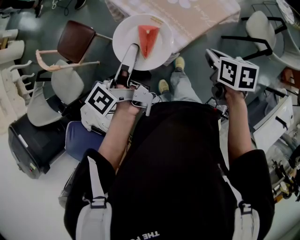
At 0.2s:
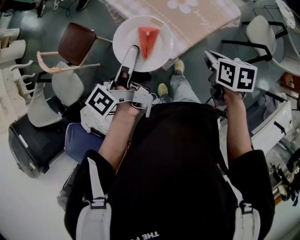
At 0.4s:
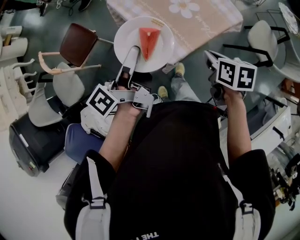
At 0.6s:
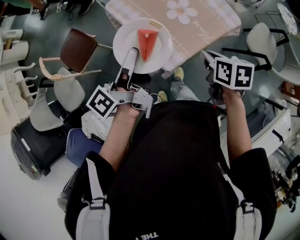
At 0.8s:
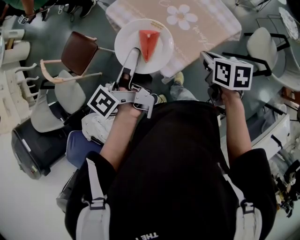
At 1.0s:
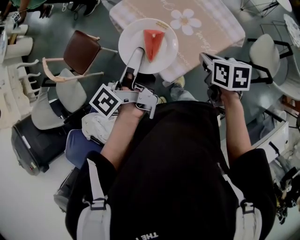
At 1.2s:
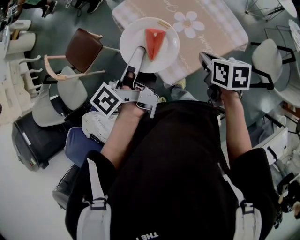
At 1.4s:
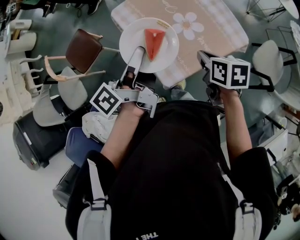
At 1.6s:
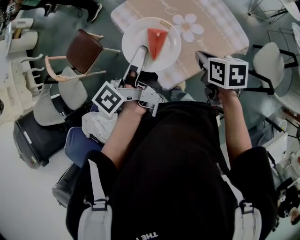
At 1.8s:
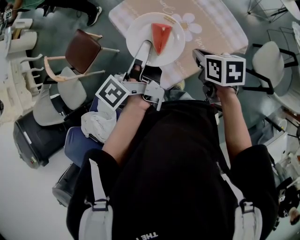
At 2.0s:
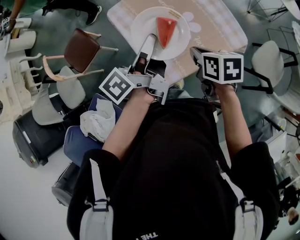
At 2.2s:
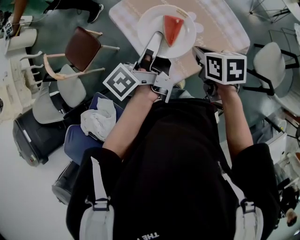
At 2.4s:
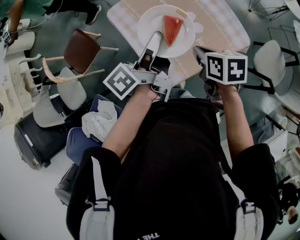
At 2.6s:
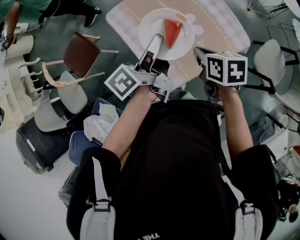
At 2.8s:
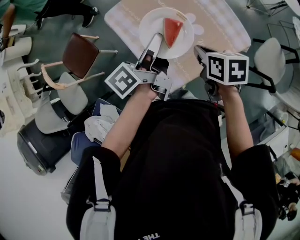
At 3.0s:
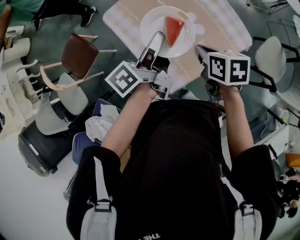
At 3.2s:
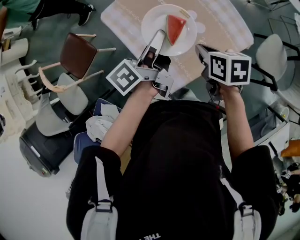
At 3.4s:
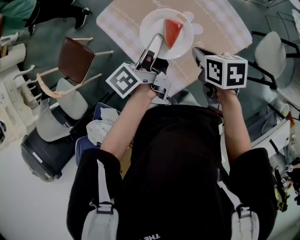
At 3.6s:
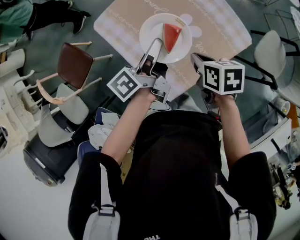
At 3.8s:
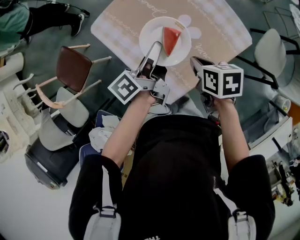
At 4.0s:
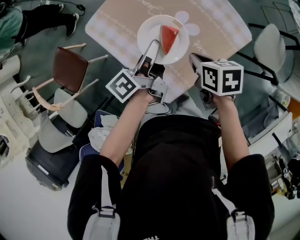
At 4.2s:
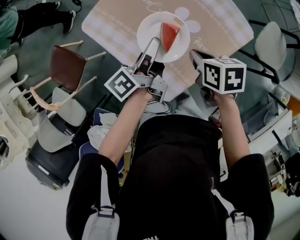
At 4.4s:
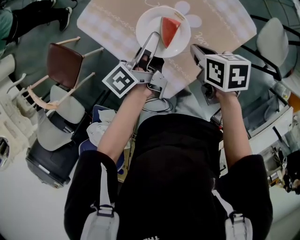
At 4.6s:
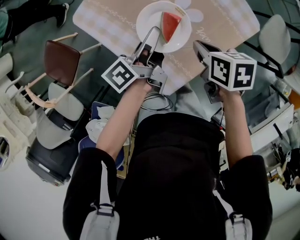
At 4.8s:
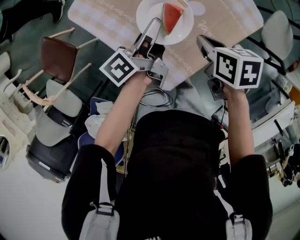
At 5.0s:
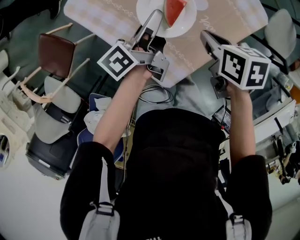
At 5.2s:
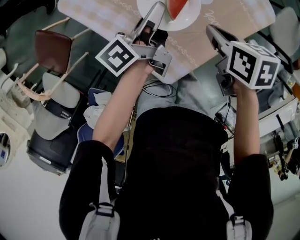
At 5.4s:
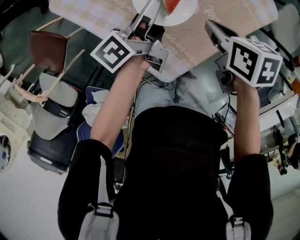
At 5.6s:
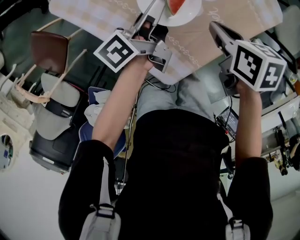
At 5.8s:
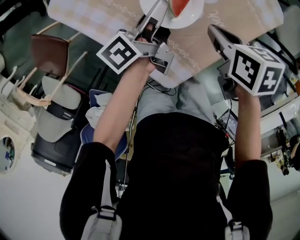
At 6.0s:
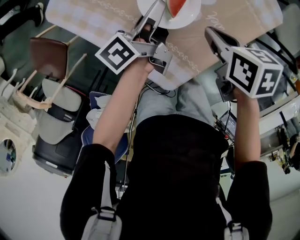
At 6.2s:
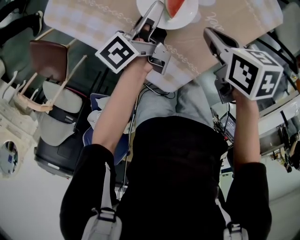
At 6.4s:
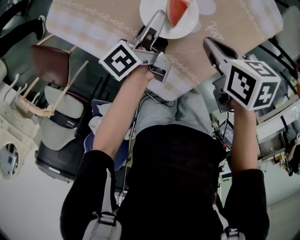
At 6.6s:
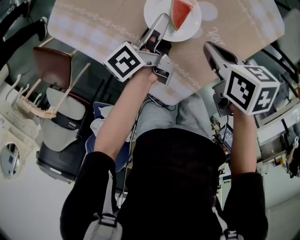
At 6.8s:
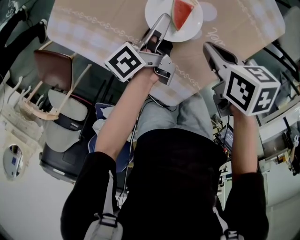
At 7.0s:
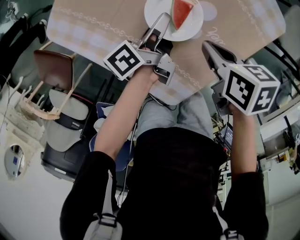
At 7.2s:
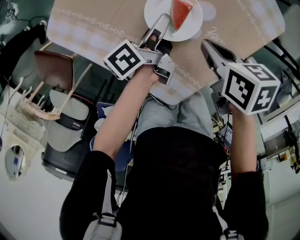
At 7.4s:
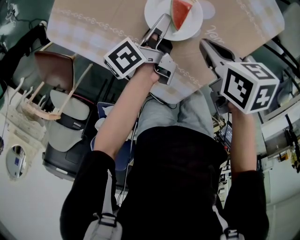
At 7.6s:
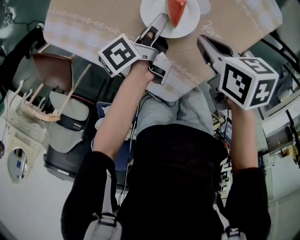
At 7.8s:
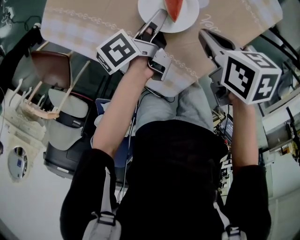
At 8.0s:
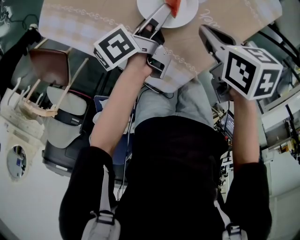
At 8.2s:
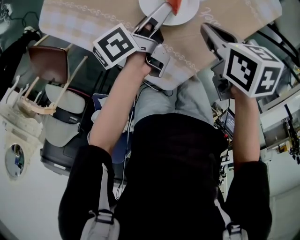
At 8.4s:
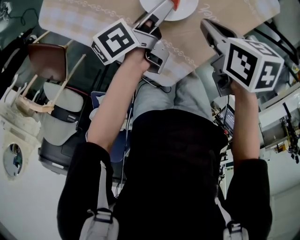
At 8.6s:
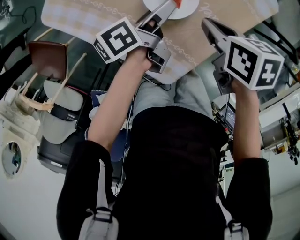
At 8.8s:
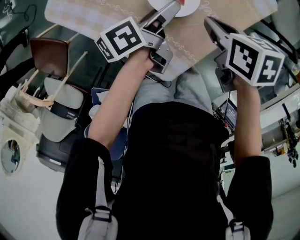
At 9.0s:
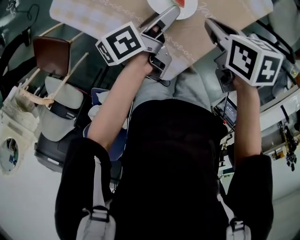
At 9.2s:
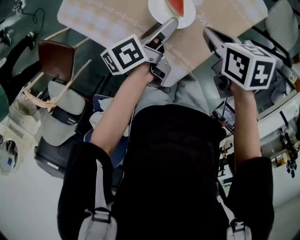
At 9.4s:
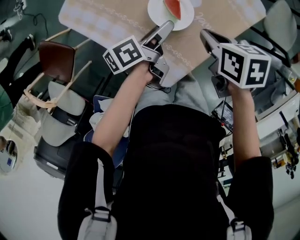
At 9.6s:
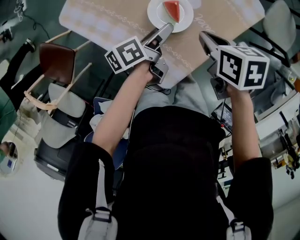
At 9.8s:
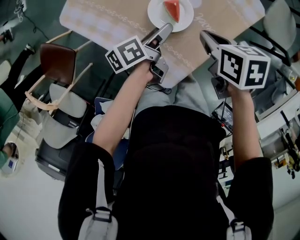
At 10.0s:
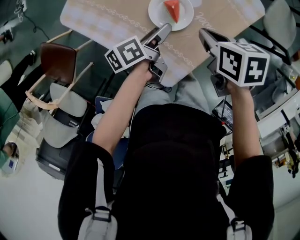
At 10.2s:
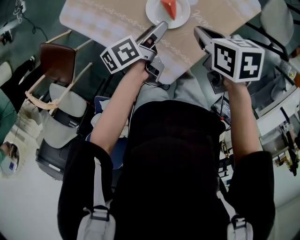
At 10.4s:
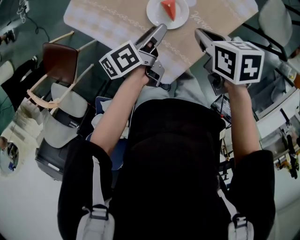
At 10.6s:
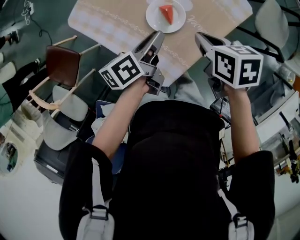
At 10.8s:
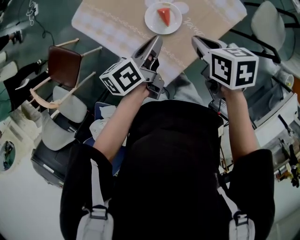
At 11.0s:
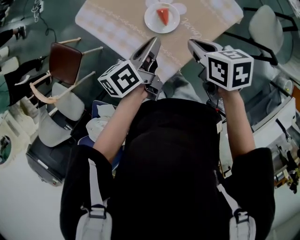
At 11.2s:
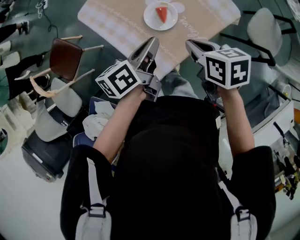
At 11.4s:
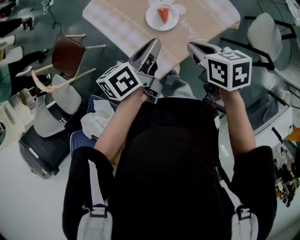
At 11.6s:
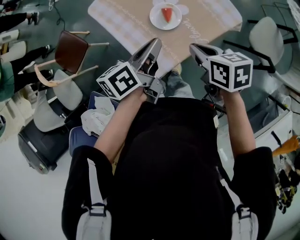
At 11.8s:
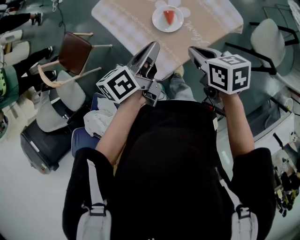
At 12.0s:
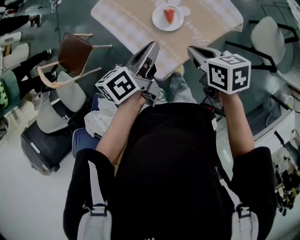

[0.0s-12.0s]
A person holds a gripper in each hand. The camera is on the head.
0.0s to 1.6s: The right gripper shifts by approximately 20 cm.
1.6s to 3.0s: The right gripper shifts by roughly 5 cm.
3.0s to 4.4s: The right gripper is displaced downward by about 10 cm.
4.4s to 6.0s: The right gripper moves downward, approximately 10 cm.
7.6s to 9.0s: The right gripper shifts by some 5 cm.
10.4s to 12.0s: The right gripper moves roughly 15 cm.

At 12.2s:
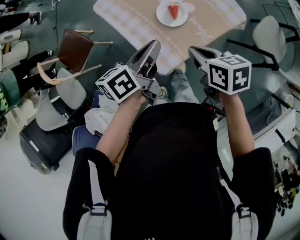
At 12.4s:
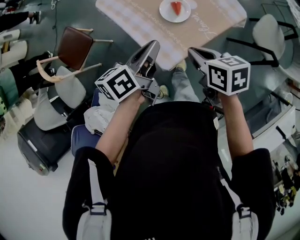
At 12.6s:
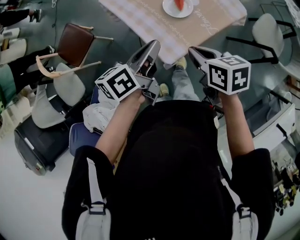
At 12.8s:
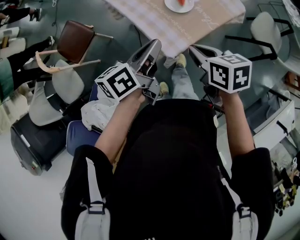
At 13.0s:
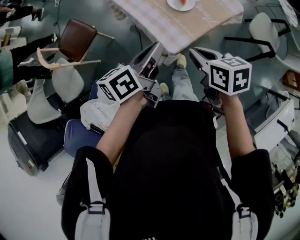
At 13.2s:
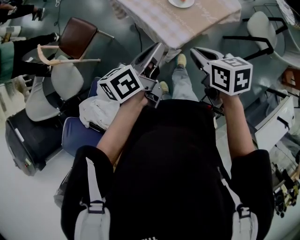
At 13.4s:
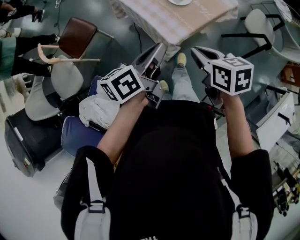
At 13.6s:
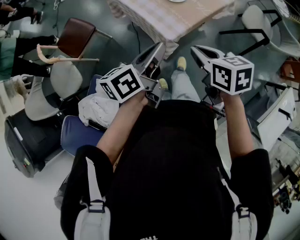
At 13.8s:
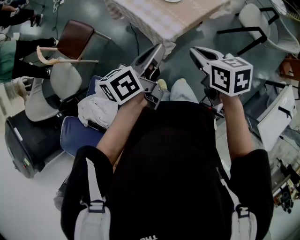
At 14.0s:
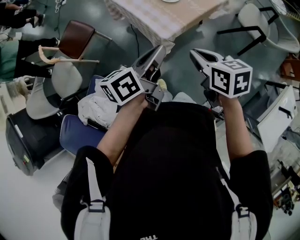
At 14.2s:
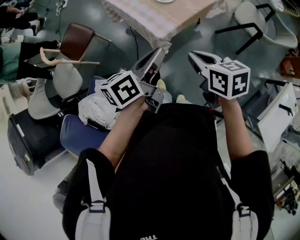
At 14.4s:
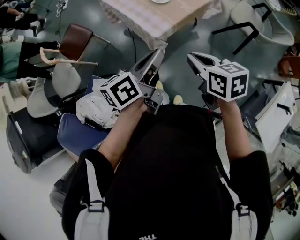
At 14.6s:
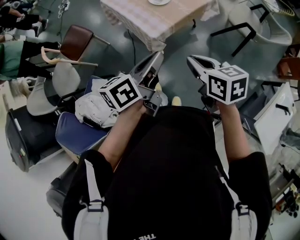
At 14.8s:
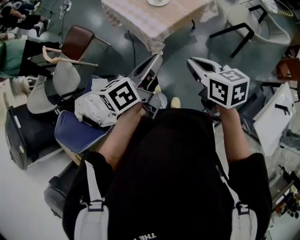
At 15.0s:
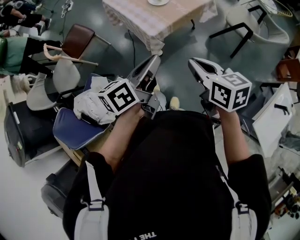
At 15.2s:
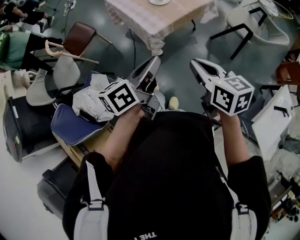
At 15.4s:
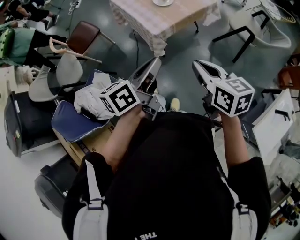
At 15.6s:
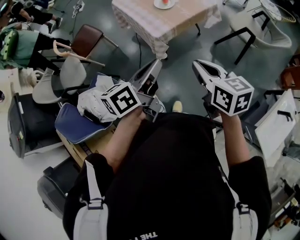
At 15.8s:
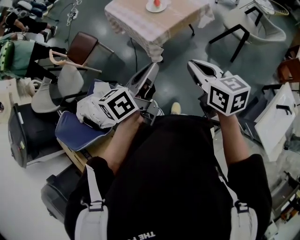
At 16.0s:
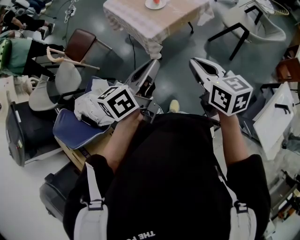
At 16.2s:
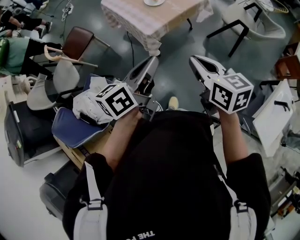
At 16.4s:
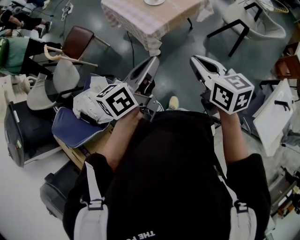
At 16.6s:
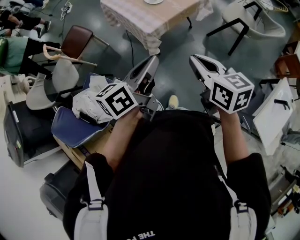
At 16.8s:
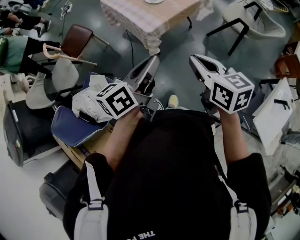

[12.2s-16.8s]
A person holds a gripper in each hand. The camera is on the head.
12.2s to 13.8s: The right gripper changes place by approximately 25 cm.
13.8s to 15.2s: The right gripper changes place by about 20 cm.

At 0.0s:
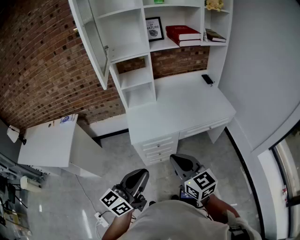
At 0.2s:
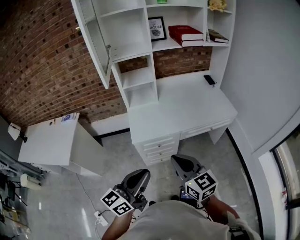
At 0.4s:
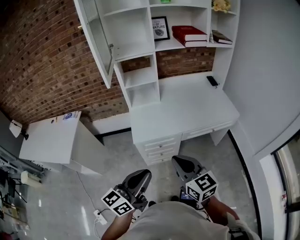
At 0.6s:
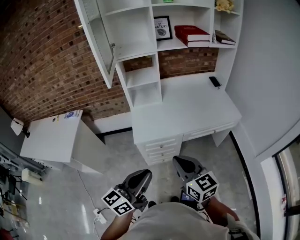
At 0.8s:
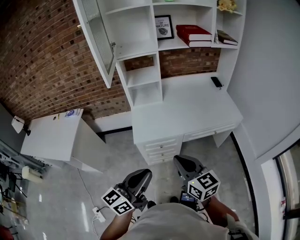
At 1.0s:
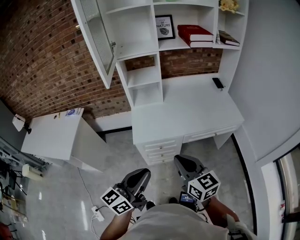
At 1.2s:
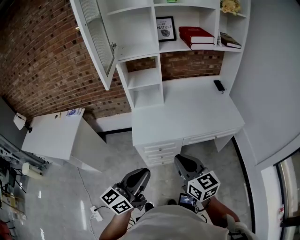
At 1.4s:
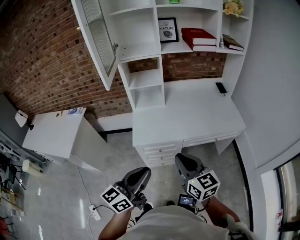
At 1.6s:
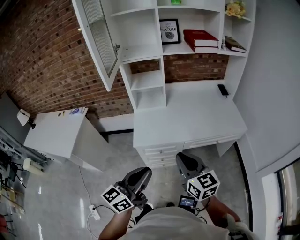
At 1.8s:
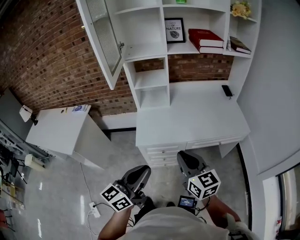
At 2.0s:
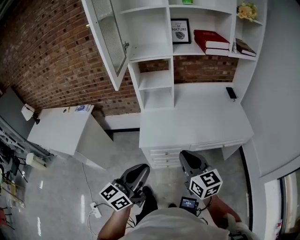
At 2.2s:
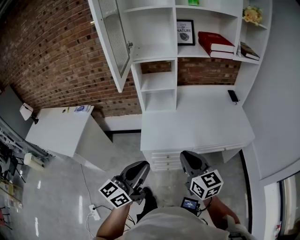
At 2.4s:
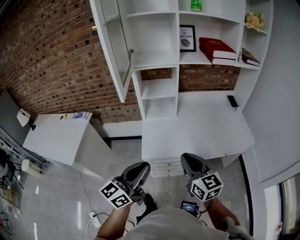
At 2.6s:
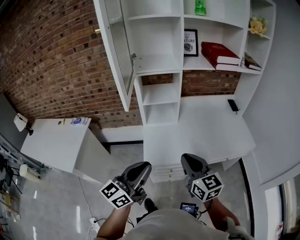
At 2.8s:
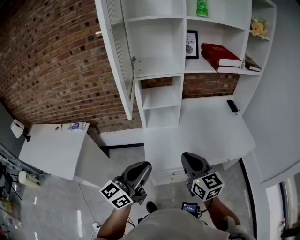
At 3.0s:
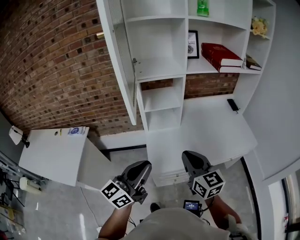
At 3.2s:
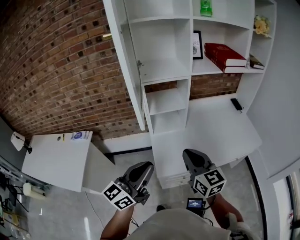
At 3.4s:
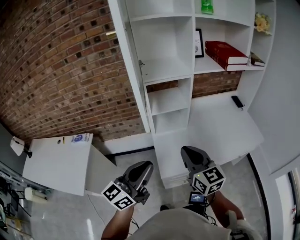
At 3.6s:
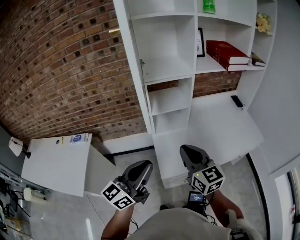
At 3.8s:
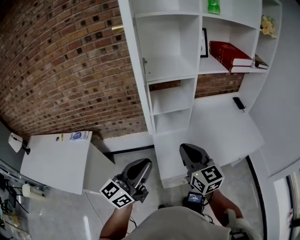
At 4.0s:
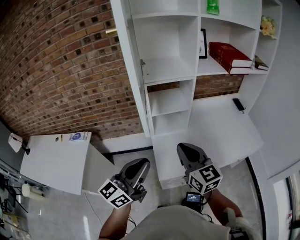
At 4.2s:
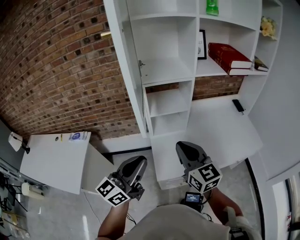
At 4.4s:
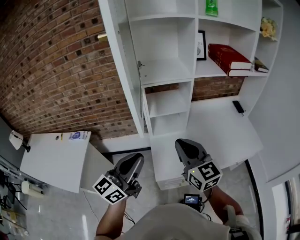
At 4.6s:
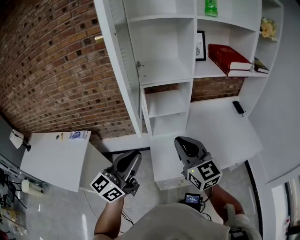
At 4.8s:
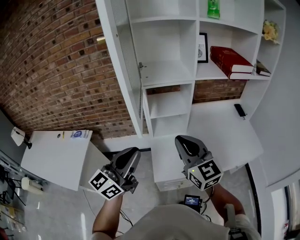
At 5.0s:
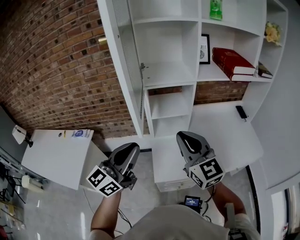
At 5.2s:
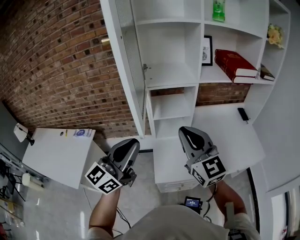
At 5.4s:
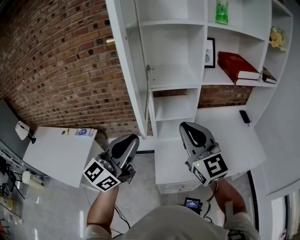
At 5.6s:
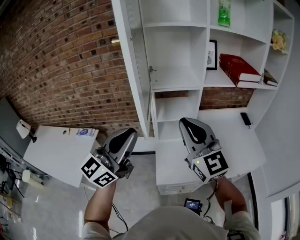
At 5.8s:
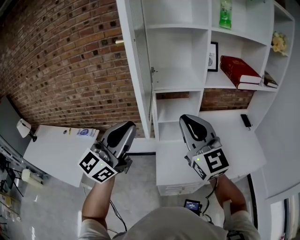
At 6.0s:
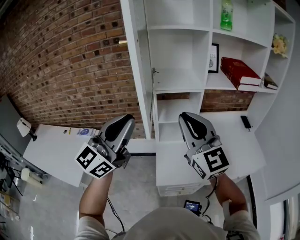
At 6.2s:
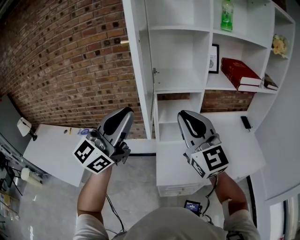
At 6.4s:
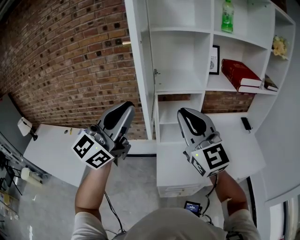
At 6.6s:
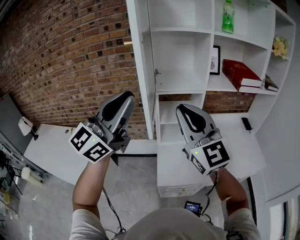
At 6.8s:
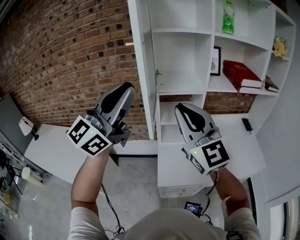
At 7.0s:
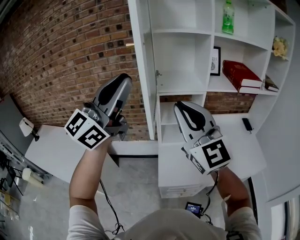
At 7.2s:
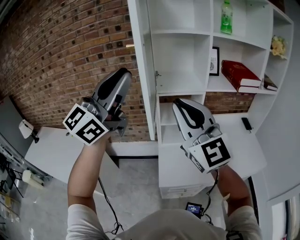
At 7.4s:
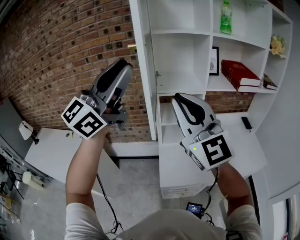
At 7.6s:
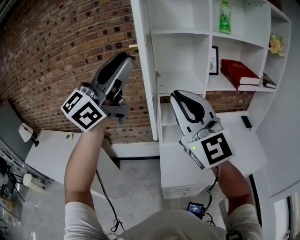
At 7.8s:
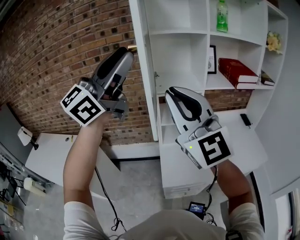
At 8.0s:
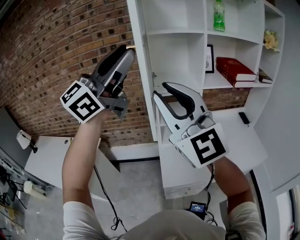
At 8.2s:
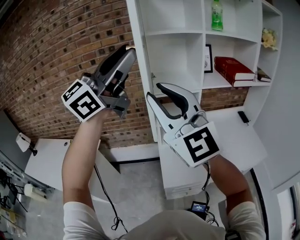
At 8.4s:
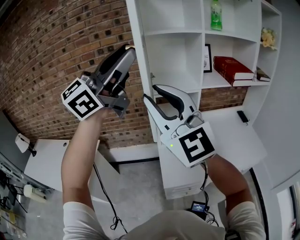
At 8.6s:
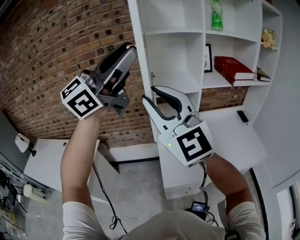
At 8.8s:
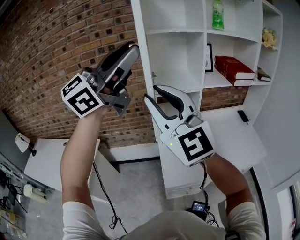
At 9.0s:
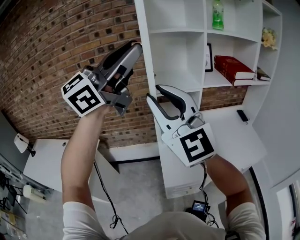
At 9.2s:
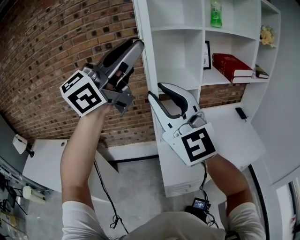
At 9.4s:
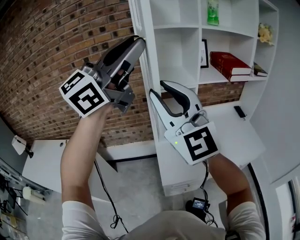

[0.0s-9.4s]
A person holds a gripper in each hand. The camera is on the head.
0.0s to 1.6s: The two grippers go some 10 cm forward and to the right.
1.6s to 3.2s: Both grippers travel together forward and to the left, some 30 cm.
3.2s to 4.8s: The left gripper moves forward, some 5 cm; the right gripper shifts approximately 10 cm upward and forward.
4.8s to 6.2s: Both grippers travel together upward, some 15 cm. The left gripper changes its angle by some 20 degrees.
6.2s to 7.8s: The left gripper shifts some 15 cm upward, and opens its fingers; the right gripper moves upward and to the left, some 10 cm.
7.8s to 9.4s: The left gripper moves some 5 cm.
